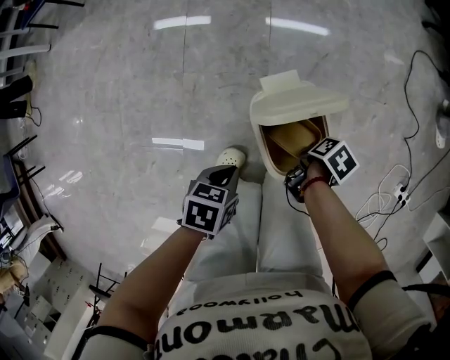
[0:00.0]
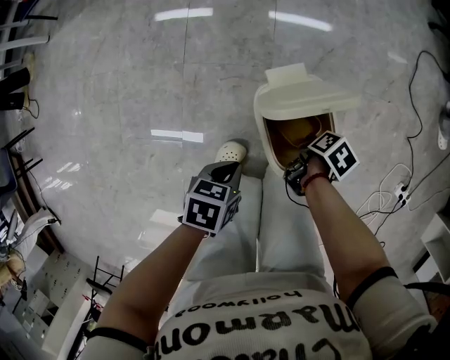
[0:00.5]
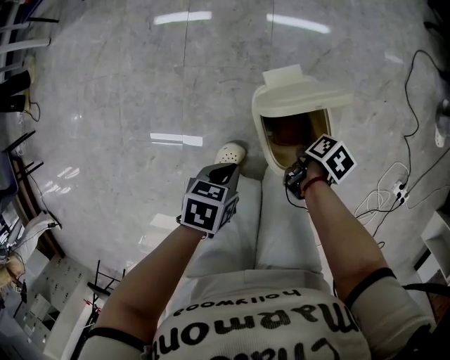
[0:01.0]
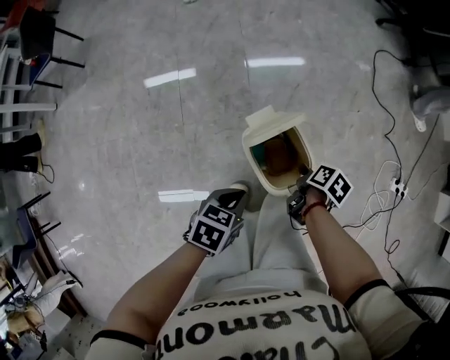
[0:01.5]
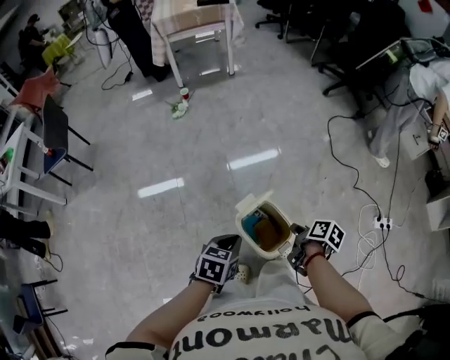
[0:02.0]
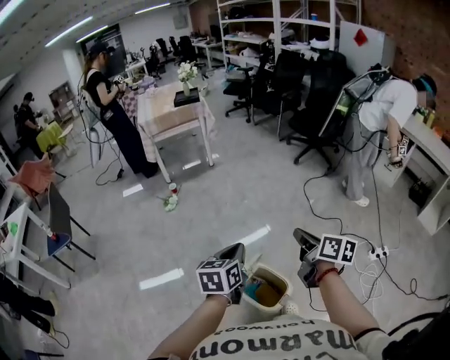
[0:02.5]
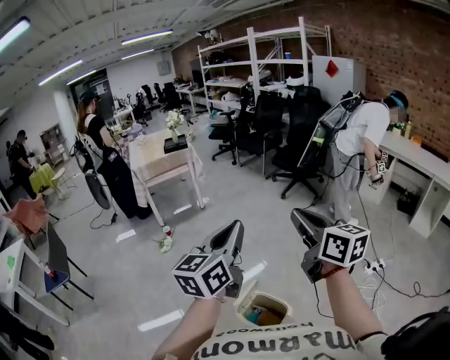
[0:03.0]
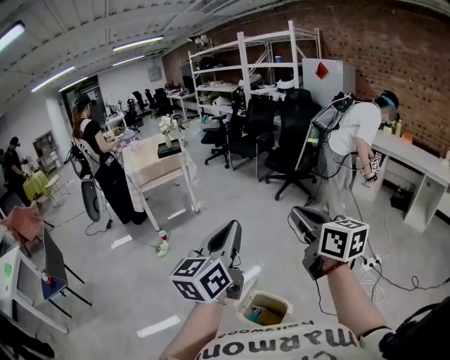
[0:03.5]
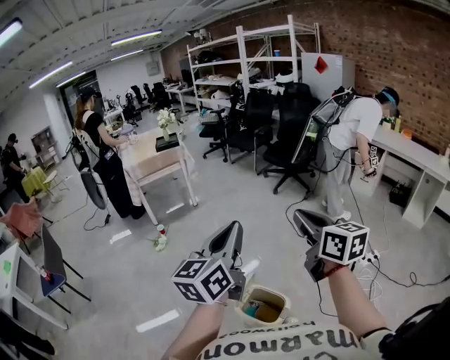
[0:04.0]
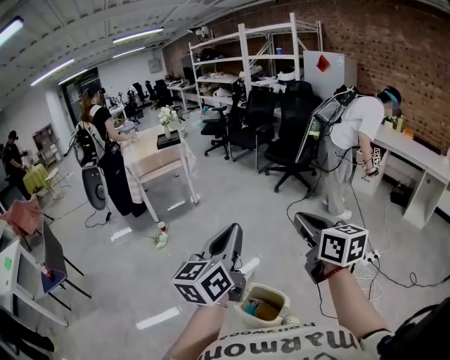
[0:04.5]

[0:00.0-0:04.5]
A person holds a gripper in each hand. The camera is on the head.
0:00.0 to 0:02.0: The two grippers go about 25 cm upward. The left gripper rotates roughly 30 degrees, while the right gripper points its fingers roughly 30 degrees further upward.
0:02.0 to 0:04.5: The two grippers go about 40 cm upward. The right gripper angles its fingers upward, by some 40 degrees, while the left gripper tips its fingers upward by some 60 degrees.

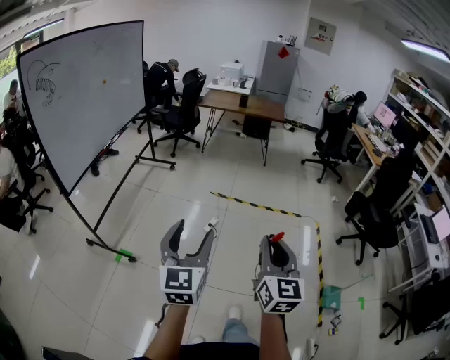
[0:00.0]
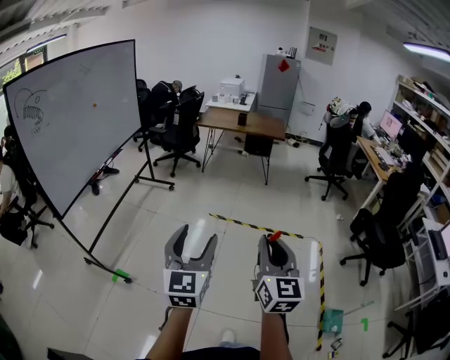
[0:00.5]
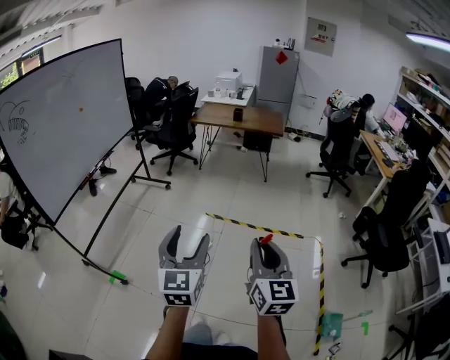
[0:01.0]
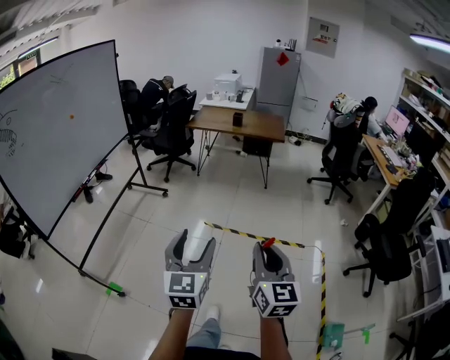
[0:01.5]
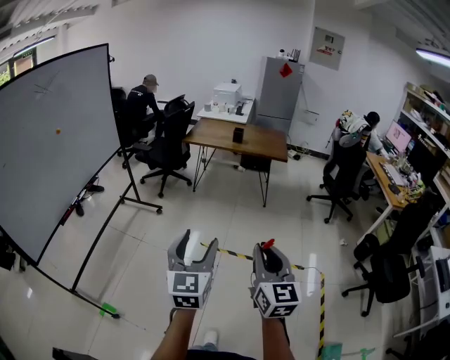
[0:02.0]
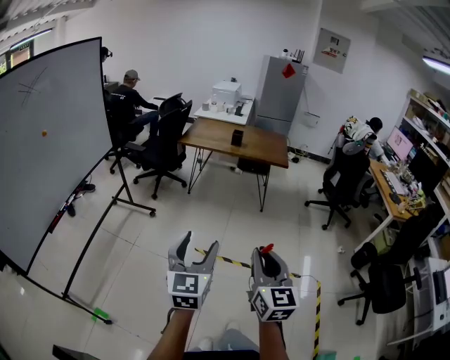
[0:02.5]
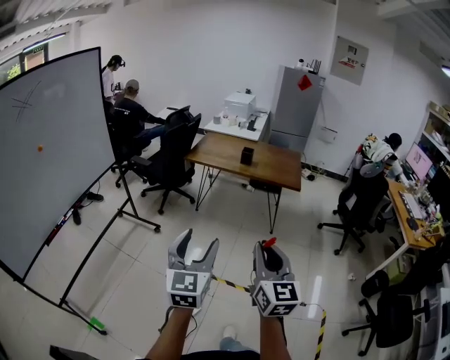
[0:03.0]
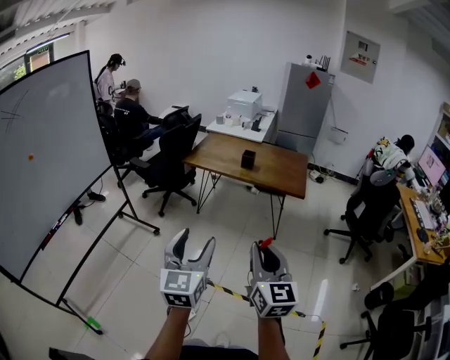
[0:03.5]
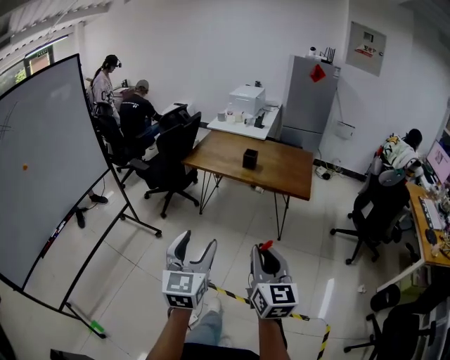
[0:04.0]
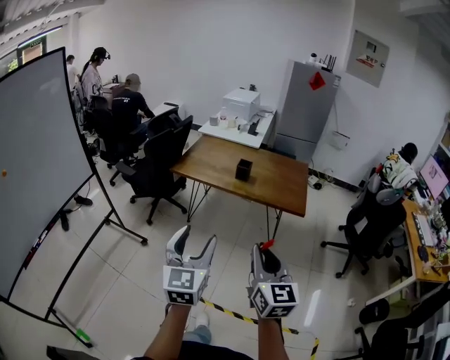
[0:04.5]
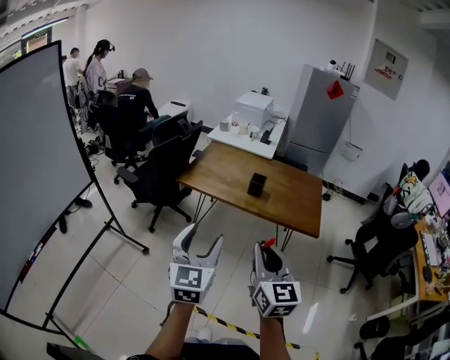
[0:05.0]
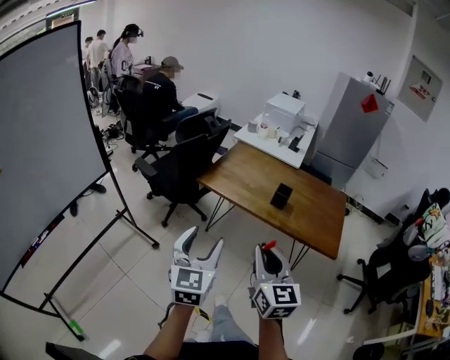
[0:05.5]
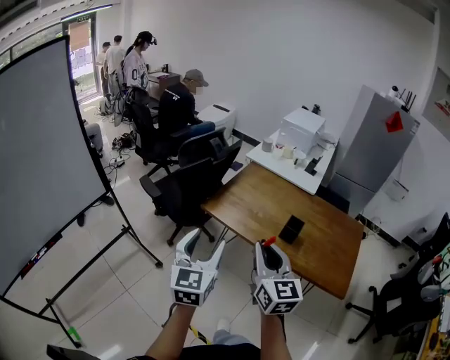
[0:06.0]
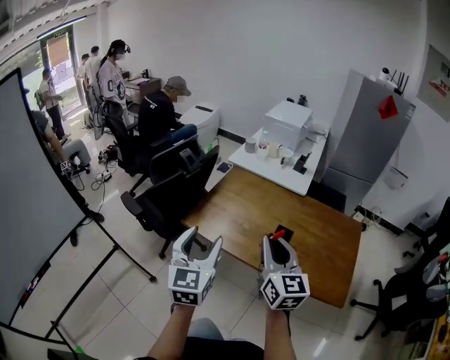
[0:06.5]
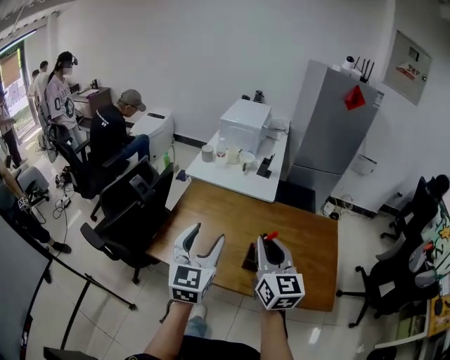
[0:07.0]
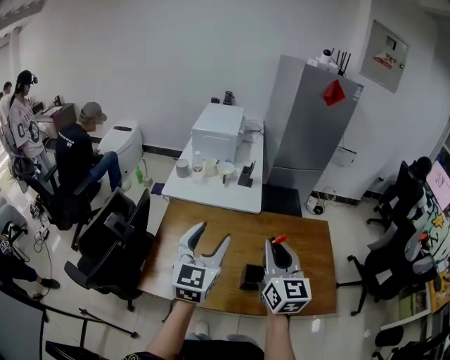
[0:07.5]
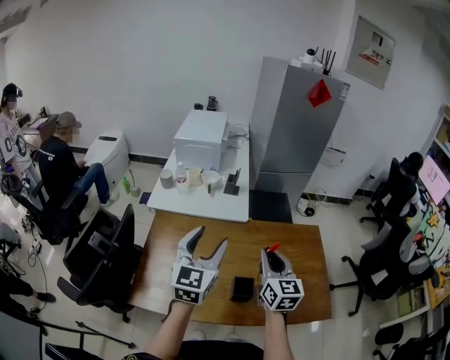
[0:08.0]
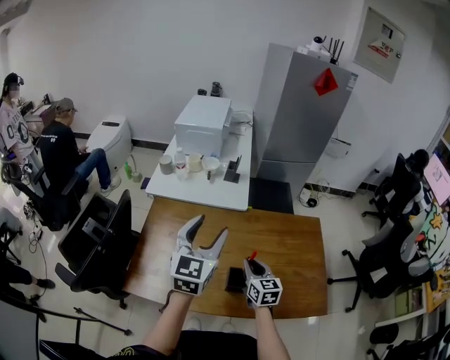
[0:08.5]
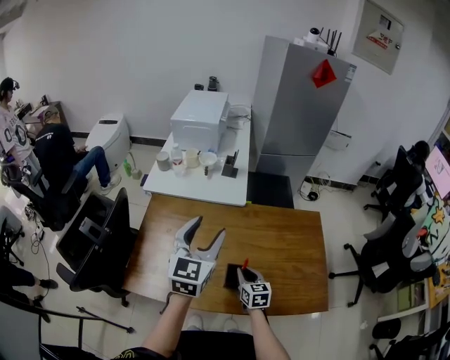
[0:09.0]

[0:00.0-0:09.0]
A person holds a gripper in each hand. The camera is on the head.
0:00.0 to 0:02.0: Both grippers are carried forward, about 50 cm.
0:02.0 to 0:04.5: The pair of grippers is taken forward, some 60 cm.
0:04.5 to 0:07.0: The two grippers travel together, forward, some 70 cm.
0:07.0 to 0:09.0: The left gripper heads forward and to the right, covering some 20 cm. The right gripper heads downward and forward, covering about 35 cm, and rotates some 30 degrees.

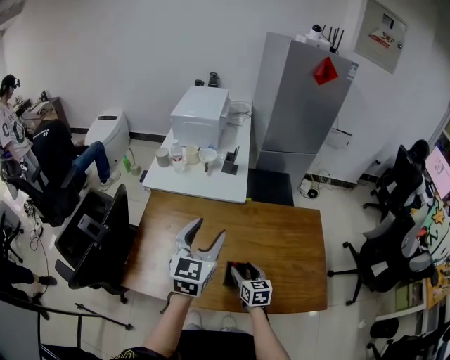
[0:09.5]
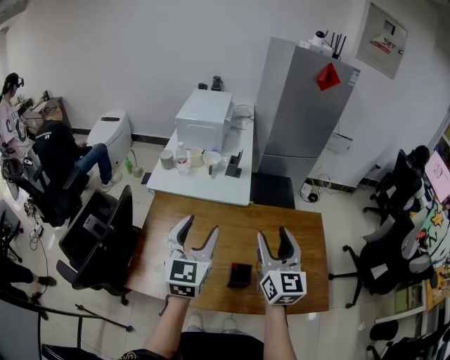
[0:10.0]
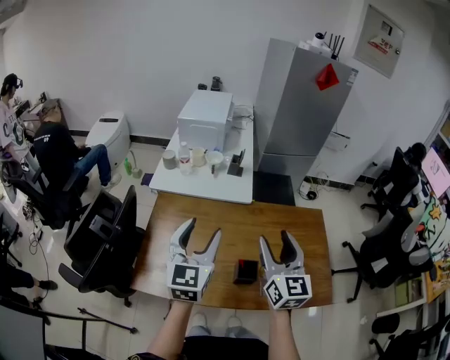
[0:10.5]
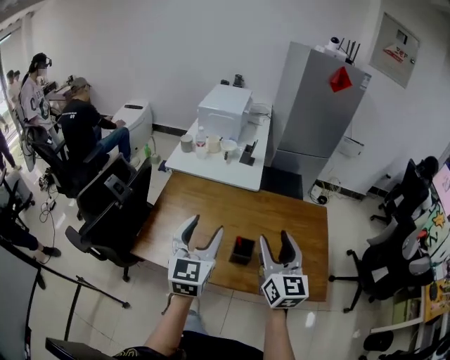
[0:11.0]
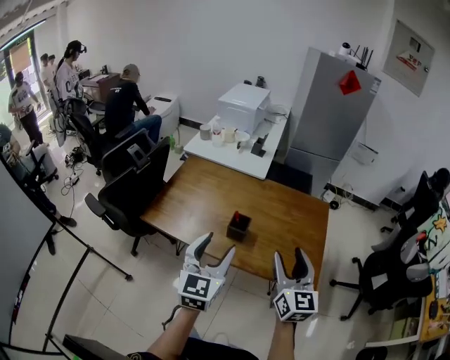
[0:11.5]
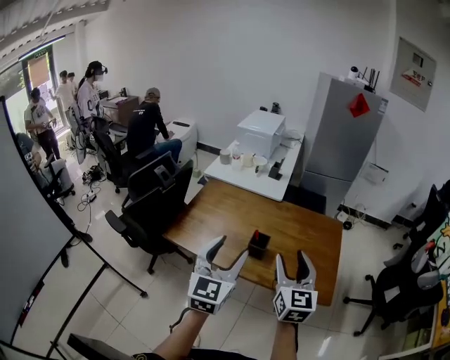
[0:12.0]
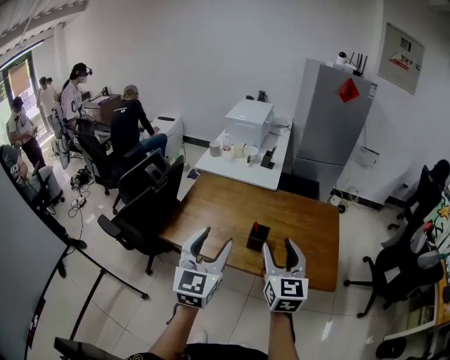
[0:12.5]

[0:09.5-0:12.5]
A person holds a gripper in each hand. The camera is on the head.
0:09.5 to 0:11.0: The left gripper moves backward, some 15 cm; the right gripper is displaced upward by some 30 cm, and points its fingers about 30 degrees further upward.
0:11.0 to 0:12.5: The two grippers go some 15 cm backward.

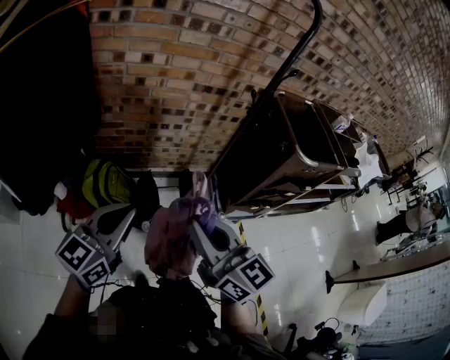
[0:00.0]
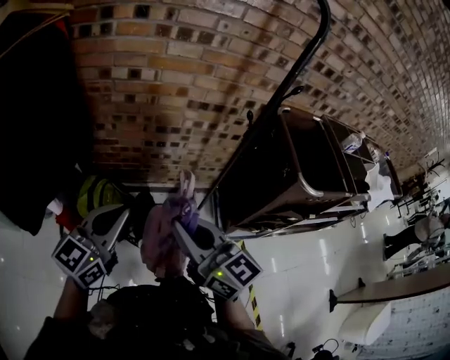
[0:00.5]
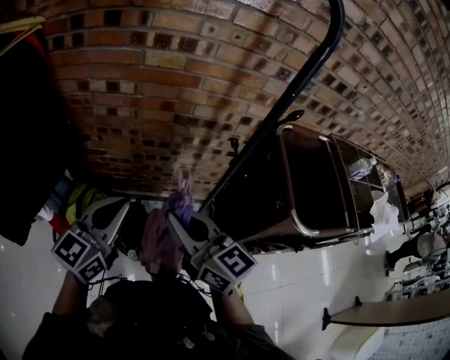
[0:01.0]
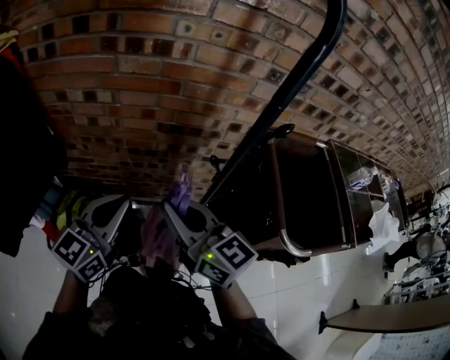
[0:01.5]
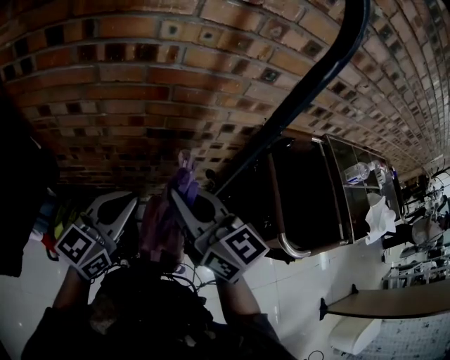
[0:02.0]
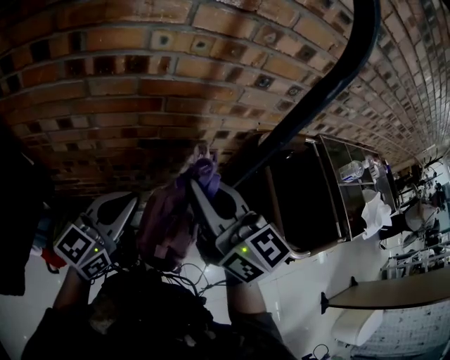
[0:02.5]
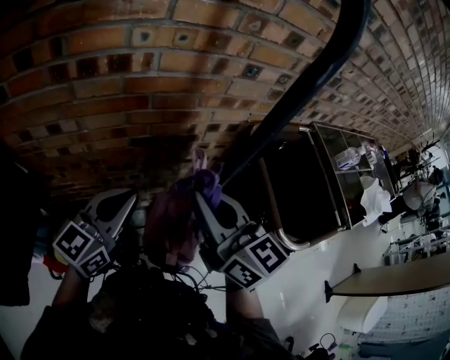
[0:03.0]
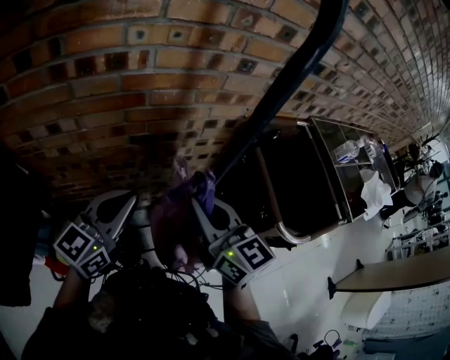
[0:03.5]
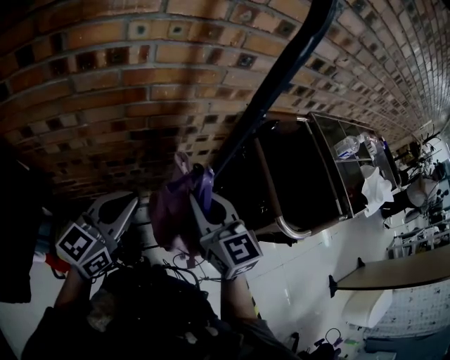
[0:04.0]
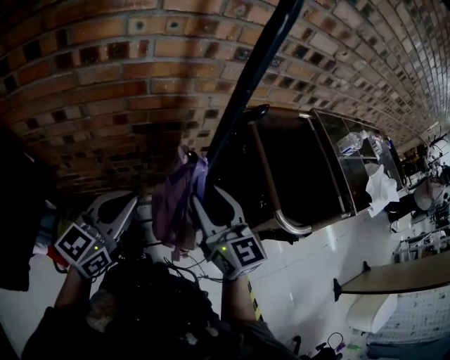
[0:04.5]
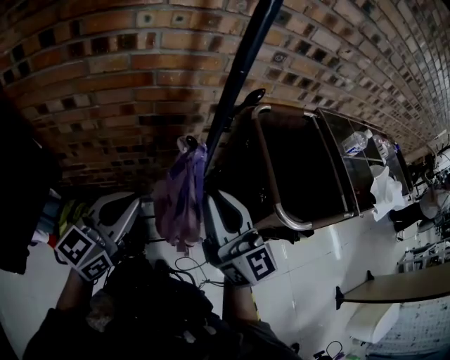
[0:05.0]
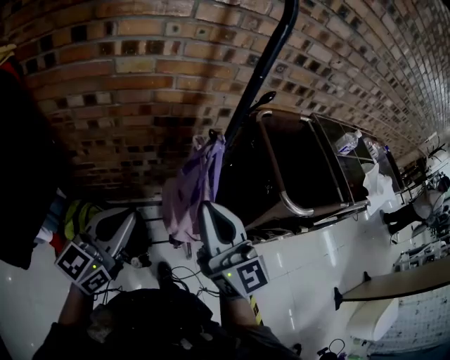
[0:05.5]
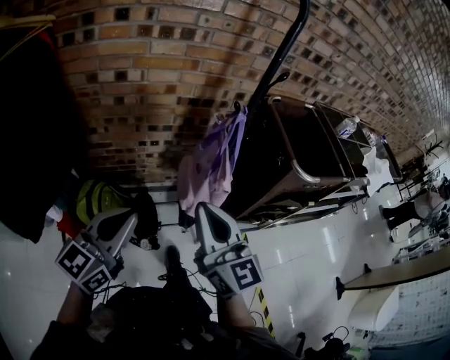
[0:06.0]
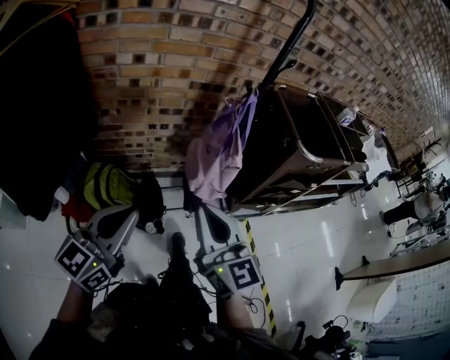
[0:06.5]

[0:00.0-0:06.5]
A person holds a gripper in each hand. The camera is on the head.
0:00.0 to 0:02.0: Both grippers are carried forward and to the right, approximately 40 cm.
0:02.0 to 0:04.5: The right gripper travels to the right and downward by roughly 10 cm, turns by approximately 20 degrees, and opens up.
0:04.5 to 0:06.5: Both grippers are carried backward, about 40 cm. The right gripper closes up.

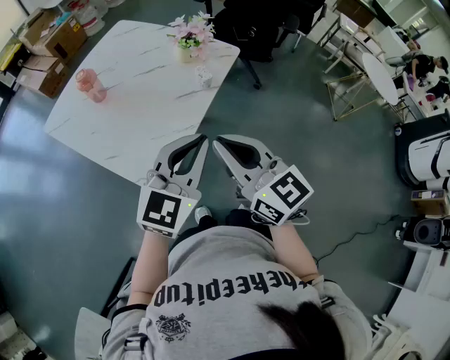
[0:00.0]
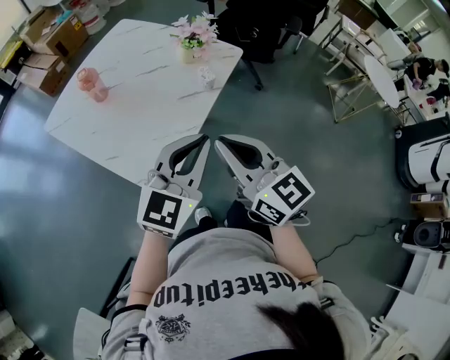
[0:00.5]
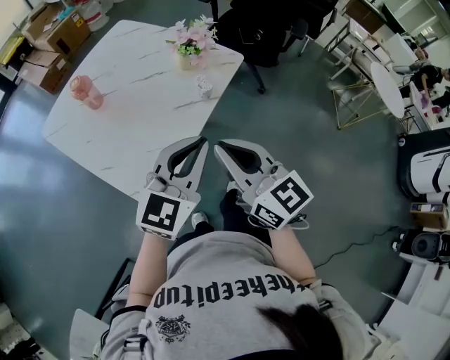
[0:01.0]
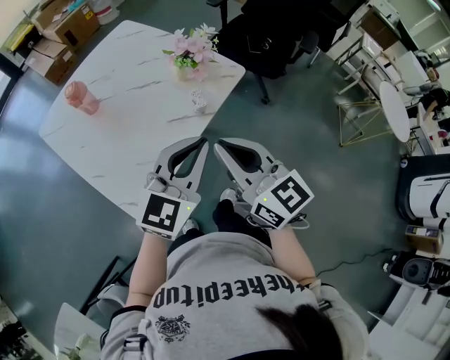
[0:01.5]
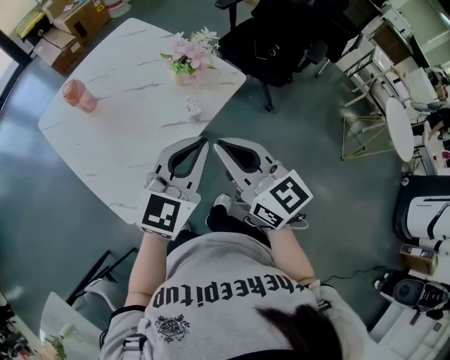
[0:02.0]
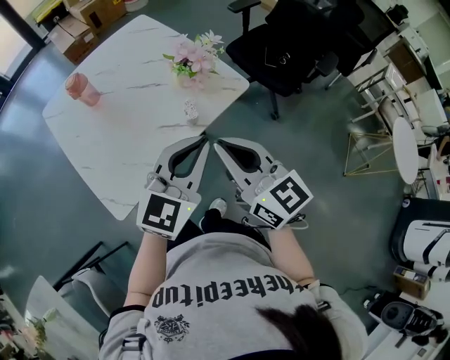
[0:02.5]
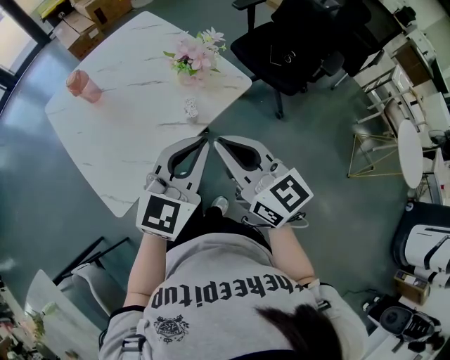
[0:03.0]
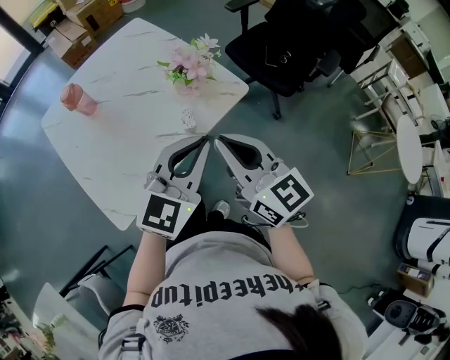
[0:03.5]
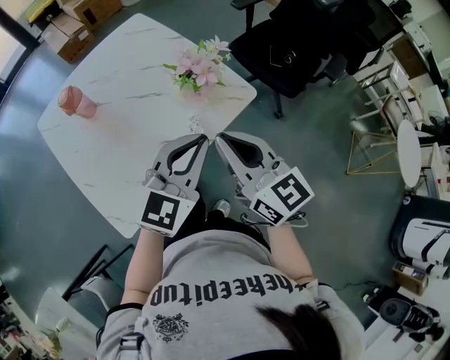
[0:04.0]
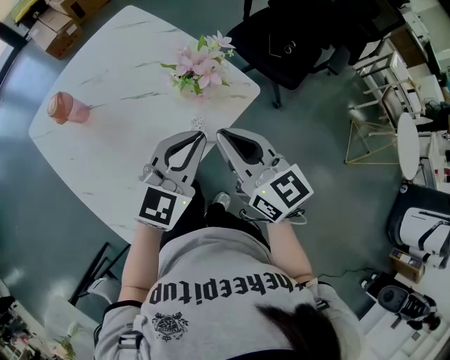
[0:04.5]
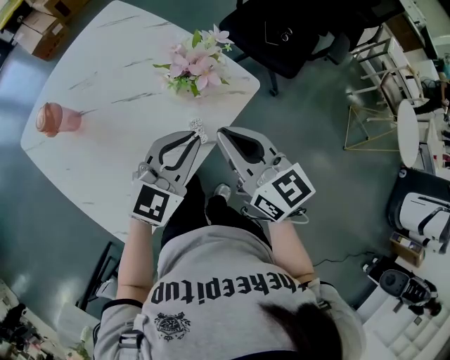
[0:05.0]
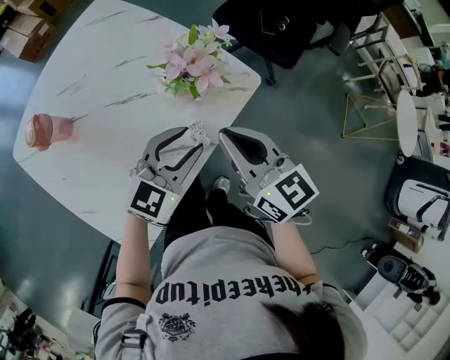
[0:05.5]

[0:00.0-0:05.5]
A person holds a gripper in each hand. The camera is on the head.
0:00.0 to 0:02.0: Both grippers move forward and to the right, some 15 cm.
0:02.0 to 0:03.5: The left gripper shifts by some 5 cm; the right gripper shifts roughly 5 cm forward.
0:03.5 to 0:05.5: The right gripper moves forward and downward, some 15 cm, while the left gripper is displaced downward, forward and to the left by about 20 cm, swivels about 20 degrees, and opens.
